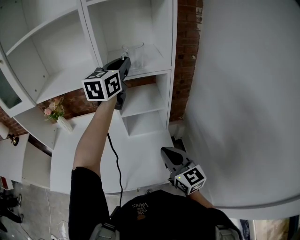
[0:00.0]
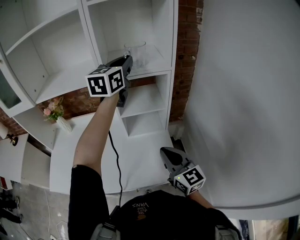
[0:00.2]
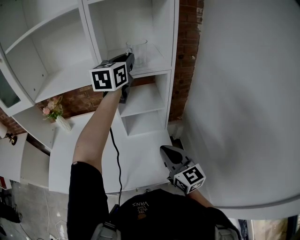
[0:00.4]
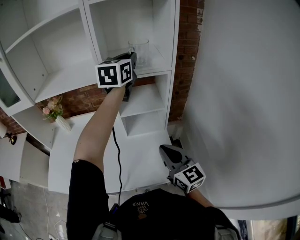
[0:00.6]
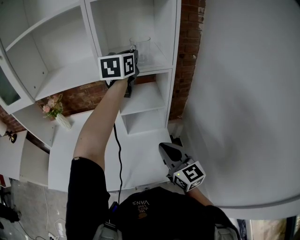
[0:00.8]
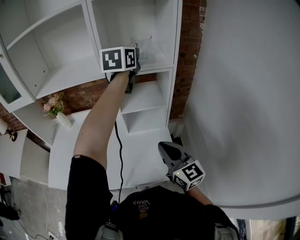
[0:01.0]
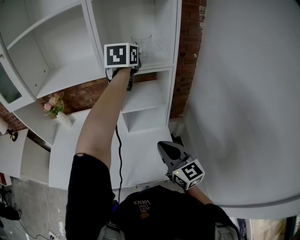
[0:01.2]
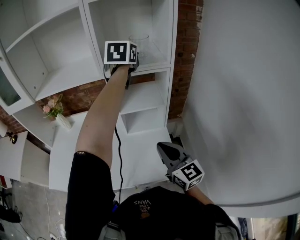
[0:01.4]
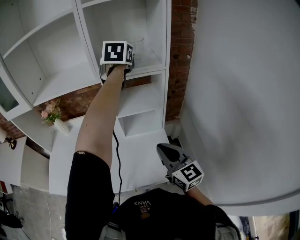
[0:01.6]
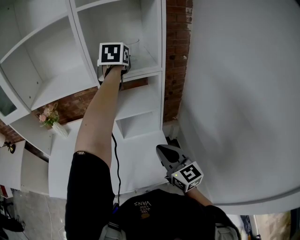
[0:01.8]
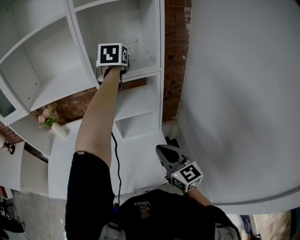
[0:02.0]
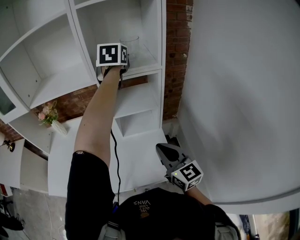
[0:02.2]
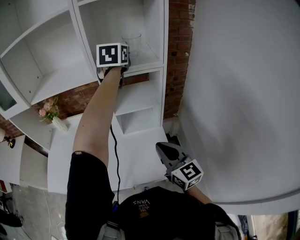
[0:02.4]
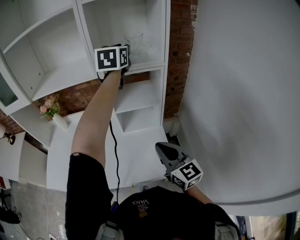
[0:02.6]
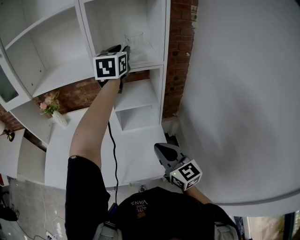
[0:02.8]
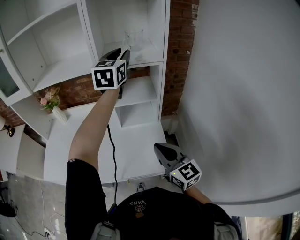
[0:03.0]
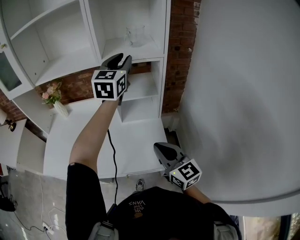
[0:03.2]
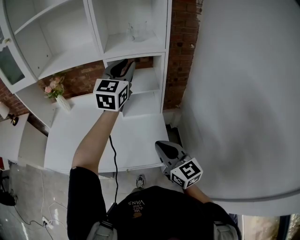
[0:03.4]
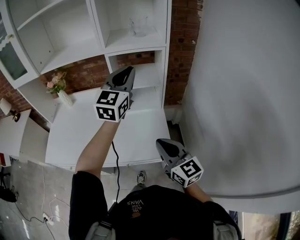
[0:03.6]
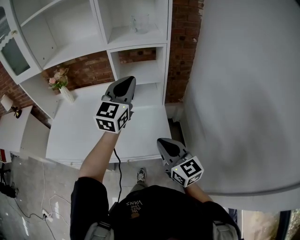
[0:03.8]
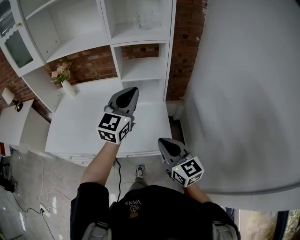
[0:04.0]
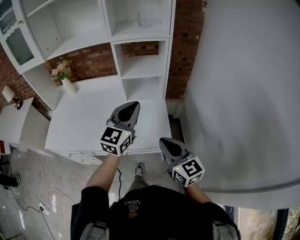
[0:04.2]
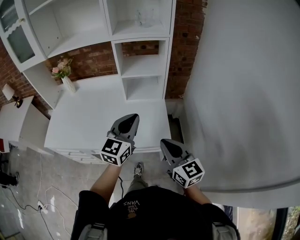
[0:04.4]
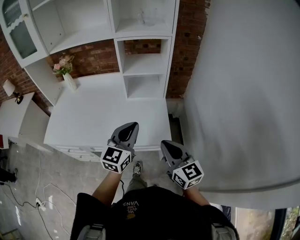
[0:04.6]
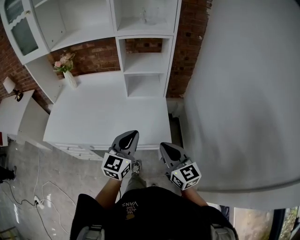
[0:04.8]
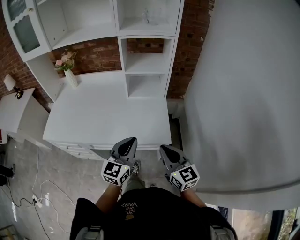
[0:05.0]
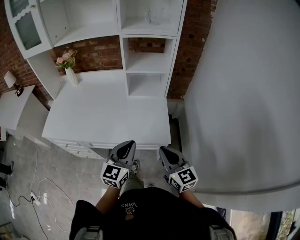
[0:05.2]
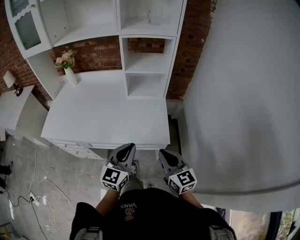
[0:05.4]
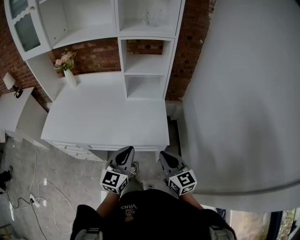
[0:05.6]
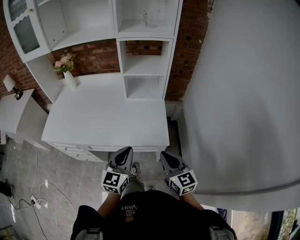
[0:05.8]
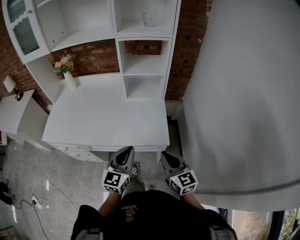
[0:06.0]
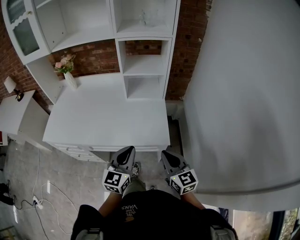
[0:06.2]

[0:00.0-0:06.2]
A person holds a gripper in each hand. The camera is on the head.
0:00.0 to 0:01.6: The left gripper travels forward by roughly 10 cm, and turns by some 30 degrees.
0:01.6 to 0:03.2: The right gripper shifts about 5 cm backward, while the left gripper is displaced backward by roughly 10 cm, and swivels roughly 20 degrees.
0:03.2 to 0:04.6: The left gripper moves backward and downward, approximately 40 cm, and closes its fingers. Meanwhile the right gripper travels backward by about 10 cm.
0:04.6 to 0:06.2: The left gripper travels backward and downward by some 10 cm. The right gripper travels downward by about 5 cm.
